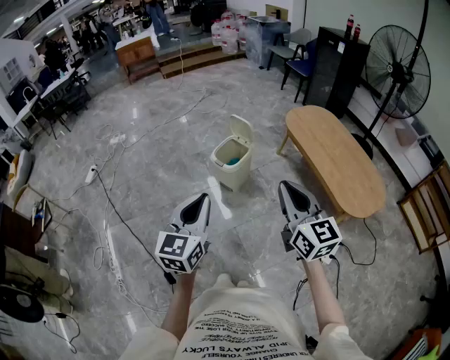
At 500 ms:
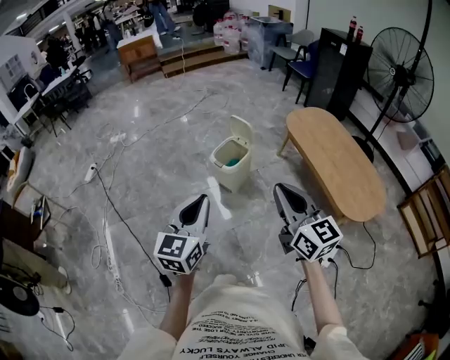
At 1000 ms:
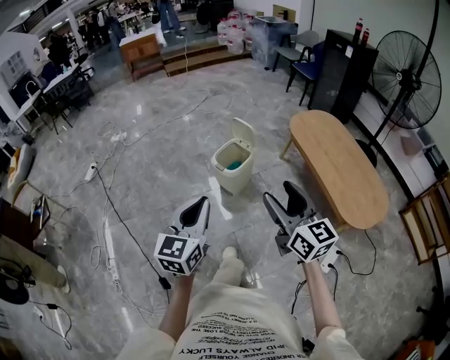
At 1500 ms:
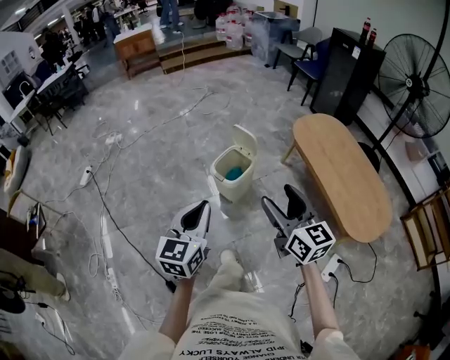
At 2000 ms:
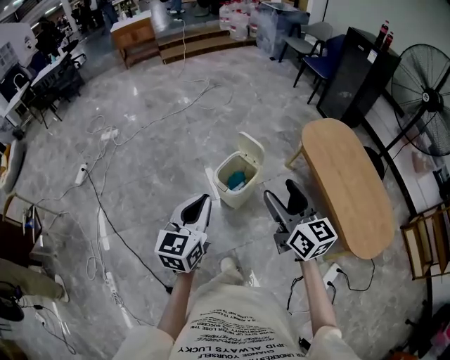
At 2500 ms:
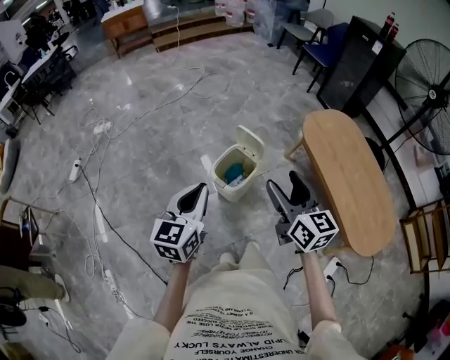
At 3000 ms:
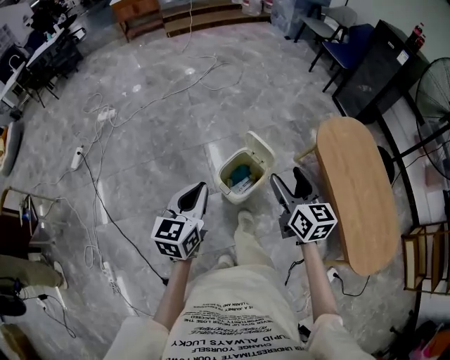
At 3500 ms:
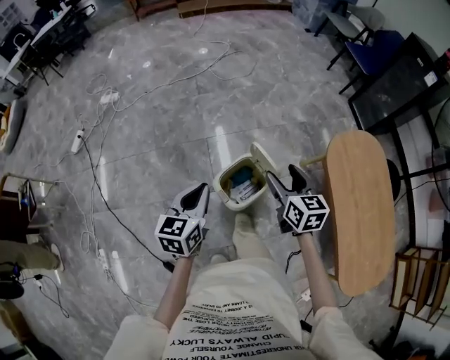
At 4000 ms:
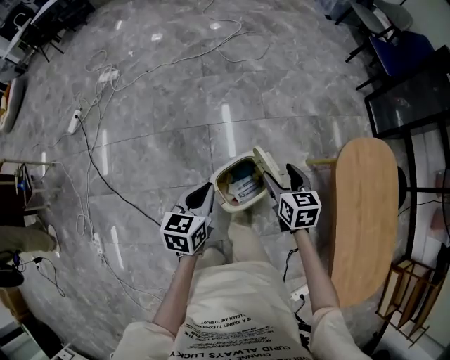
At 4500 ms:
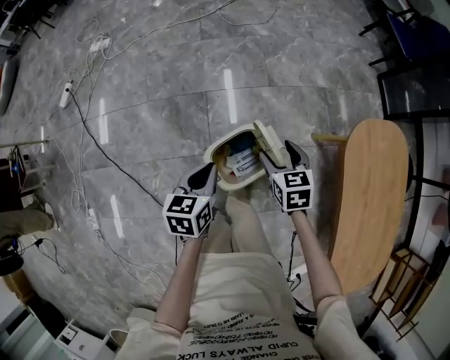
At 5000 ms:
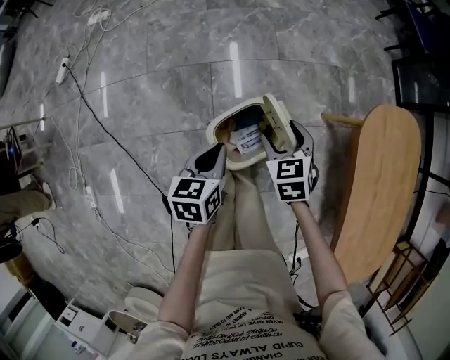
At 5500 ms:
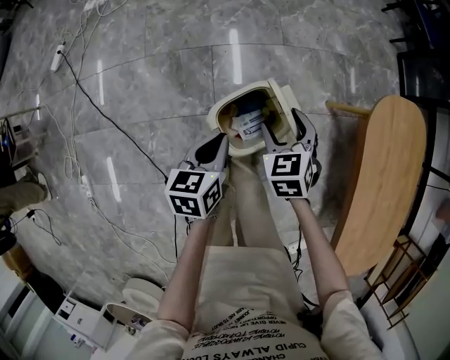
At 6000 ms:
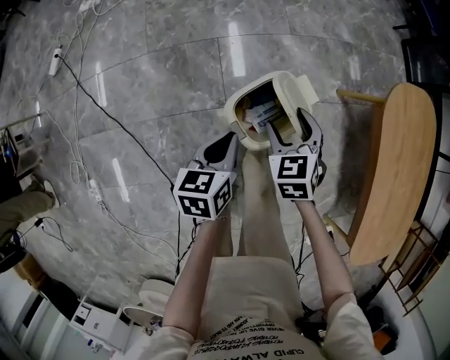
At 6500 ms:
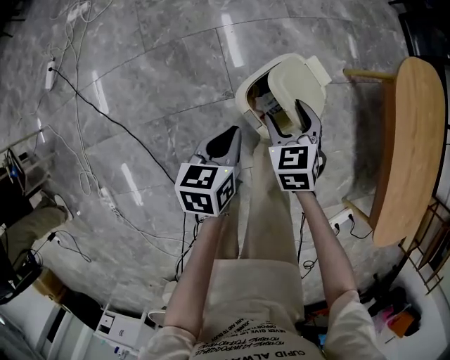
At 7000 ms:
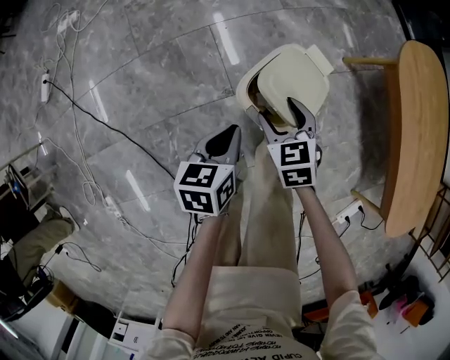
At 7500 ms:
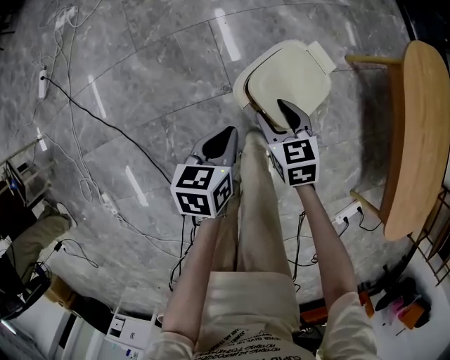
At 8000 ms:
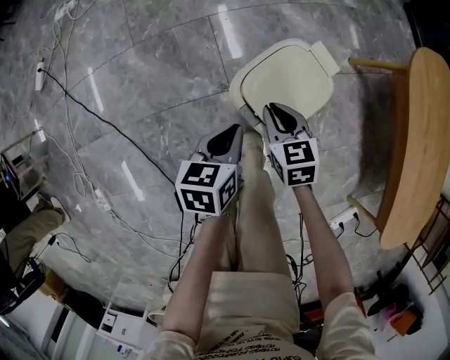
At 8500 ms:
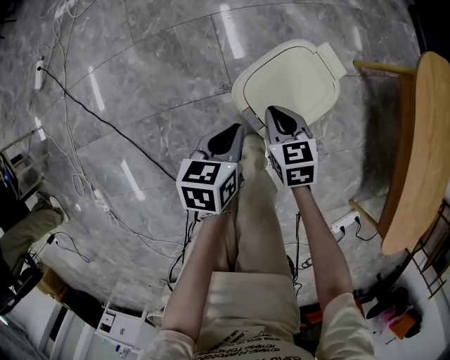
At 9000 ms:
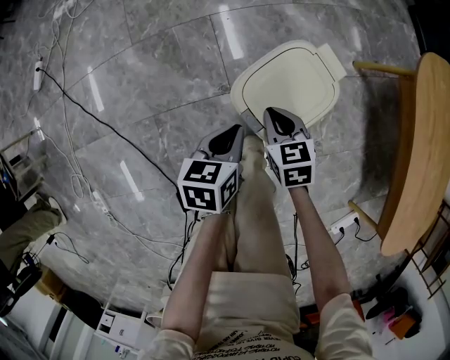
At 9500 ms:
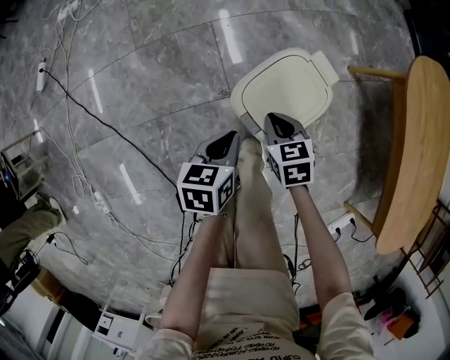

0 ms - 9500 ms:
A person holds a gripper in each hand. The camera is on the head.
0 ms - 2000 ms: The two grippers go roughly 25 cm forward. The right gripper opens.
2000 ms - 4000 ms: Both grippers move forward and downward, approximately 40 cm. The left gripper turns by some 30 degrees. The right gripper angles its fingers downward, by some 40 degrees.
4000 ms - 5500 ms: Both grippers travel together downward, approximately 10 cm. The right gripper swivels roughly 30 degrees.
5500 ms - 7500 ms: The grippers both shift downward, to the left and backward by approximately 15 cm. The right gripper rotates approximately 20 degrees.
7500 ms - 9500 ms: The right gripper travels downward by approximately 5 cm, and closes up.

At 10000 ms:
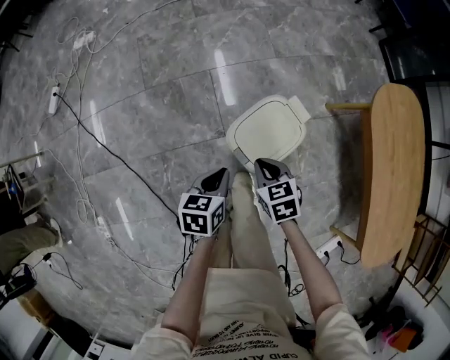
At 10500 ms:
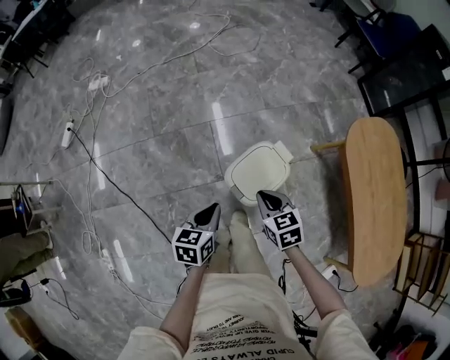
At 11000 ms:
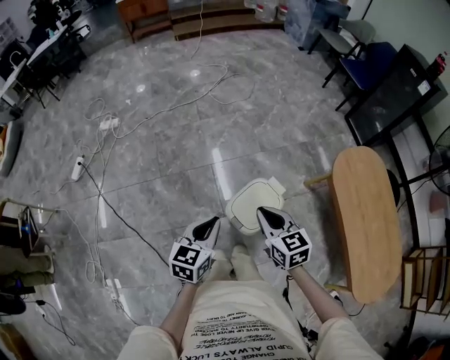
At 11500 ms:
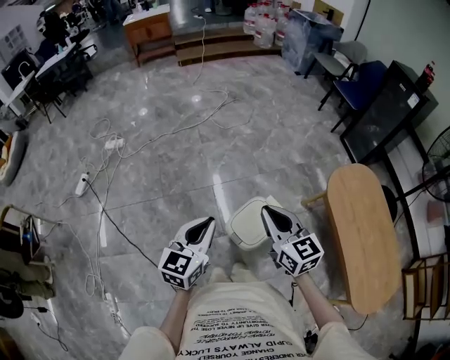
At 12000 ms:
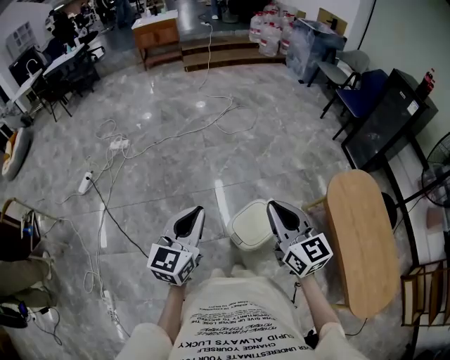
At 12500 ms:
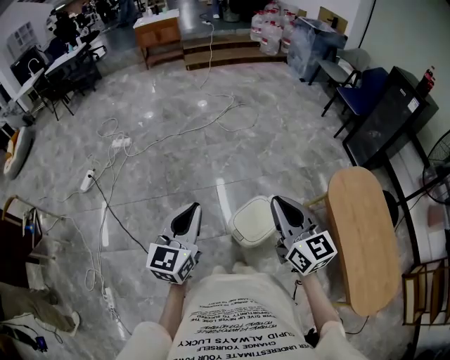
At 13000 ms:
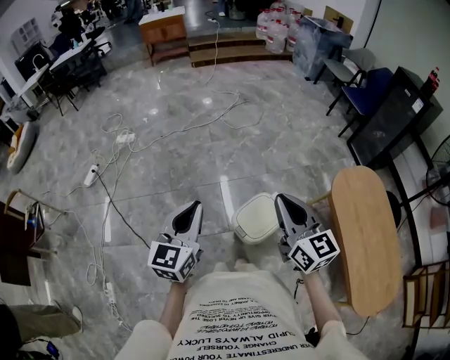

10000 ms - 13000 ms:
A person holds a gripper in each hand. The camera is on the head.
10000 ms - 11500 ms: The two grippers go about 35 cm upward. The left gripper tips its fingers upward by about 30 degrees. Meanwhile the right gripper tilts its fingers approximately 40 degrees upward.
11500 ms - 13000 ms: The left gripper travels upward and to the left by approximately 10 cm, while the right gripper goes some 5 cm upward.

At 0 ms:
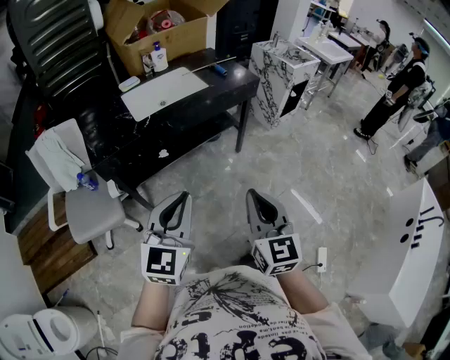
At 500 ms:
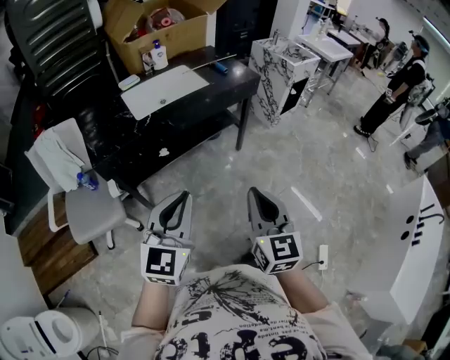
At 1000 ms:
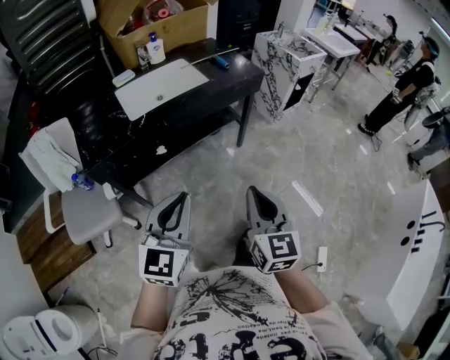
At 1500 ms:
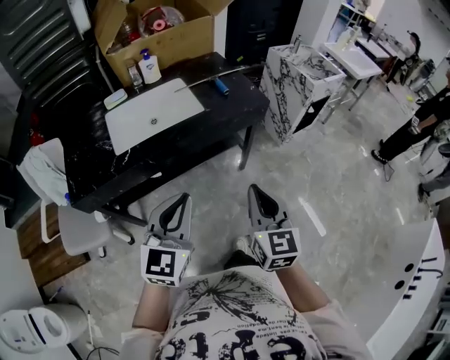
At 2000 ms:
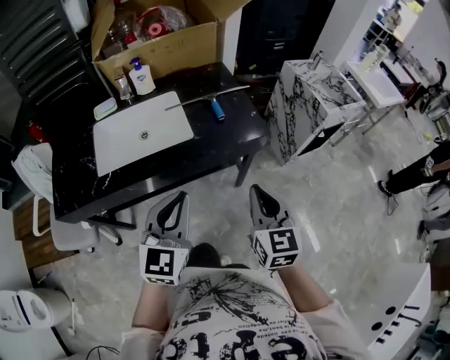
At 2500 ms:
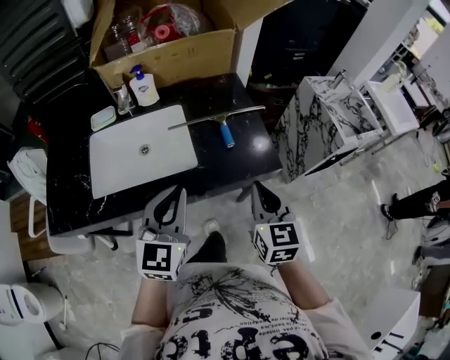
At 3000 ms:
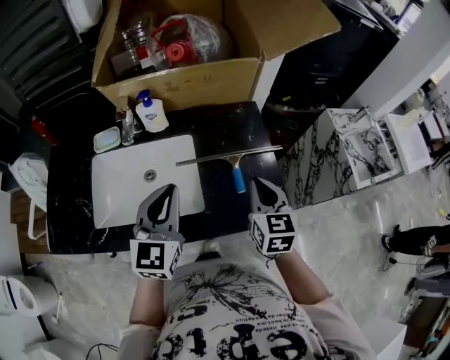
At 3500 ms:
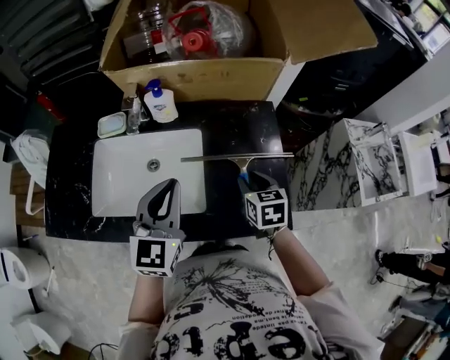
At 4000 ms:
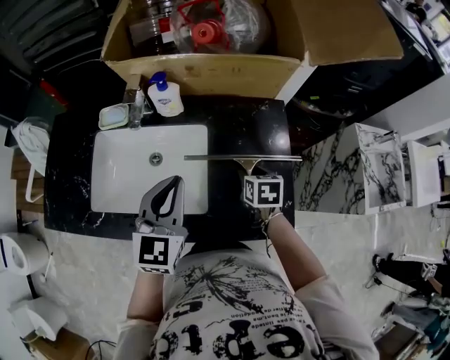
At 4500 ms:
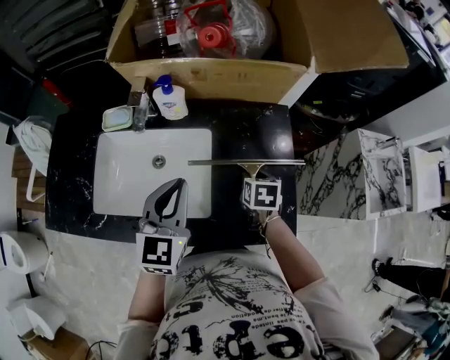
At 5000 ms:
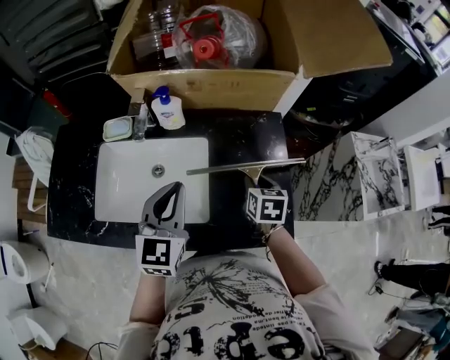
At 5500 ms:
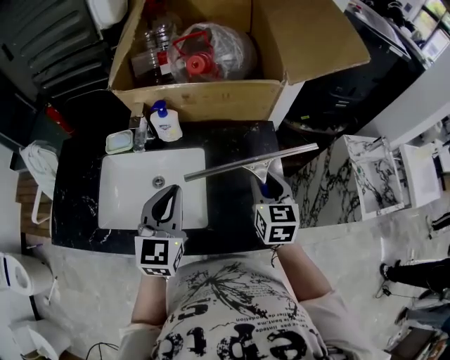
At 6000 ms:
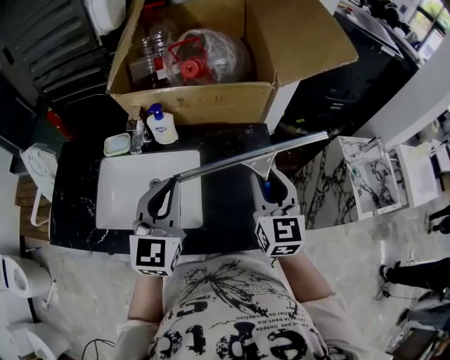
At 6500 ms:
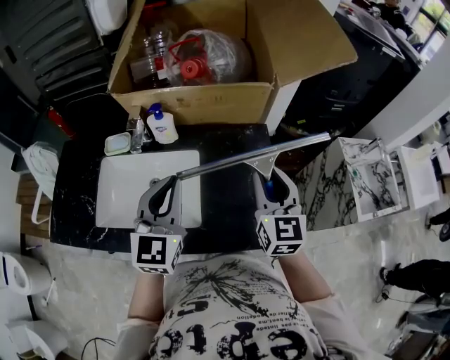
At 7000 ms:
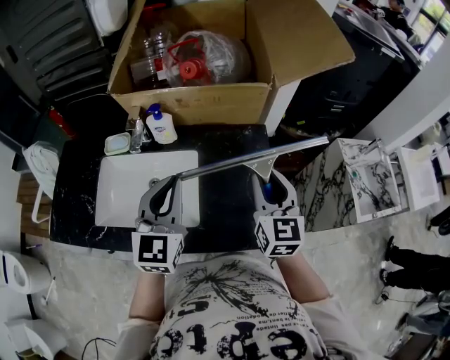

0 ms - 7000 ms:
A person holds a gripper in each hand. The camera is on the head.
0 ms - 2000 ms: The pair of grippers is taken forward, about 50 cm.
2000 ms - 3500 ms: Both grippers move forward, some 35 cm. The left gripper changes its angle by approximately 20 degrees. Meanwhile the right gripper rotates about 30 degrees, and opens.
5000 ms - 7000 ms: The left gripper shifts approximately 5 cm upward; the right gripper is displaced upward by approximately 20 cm, and points its fingers about 40 degrees further upward.

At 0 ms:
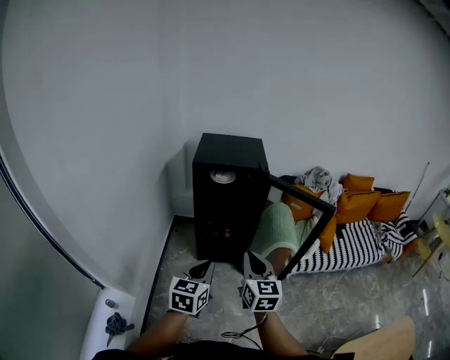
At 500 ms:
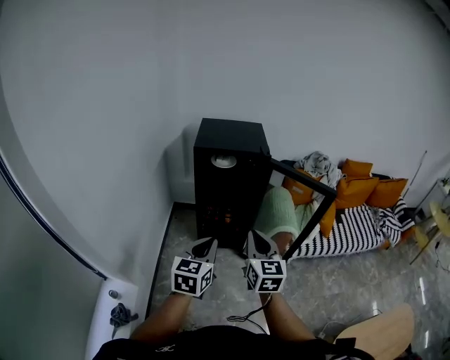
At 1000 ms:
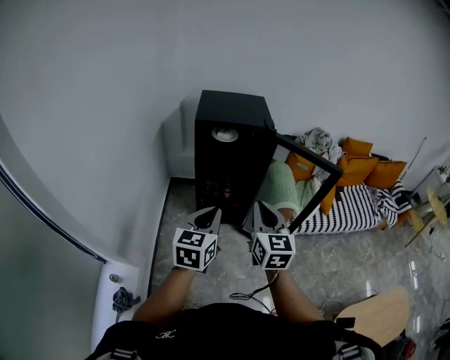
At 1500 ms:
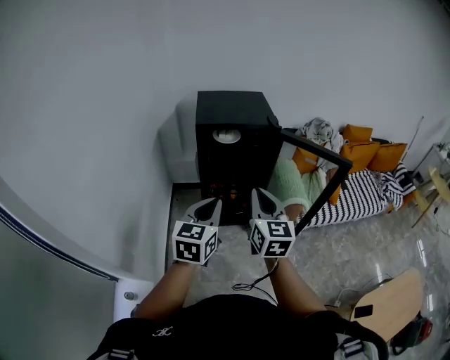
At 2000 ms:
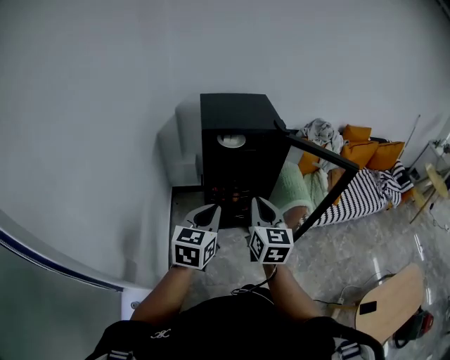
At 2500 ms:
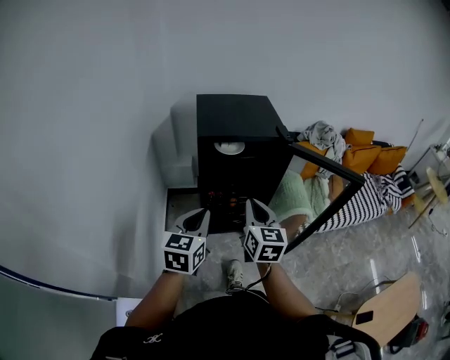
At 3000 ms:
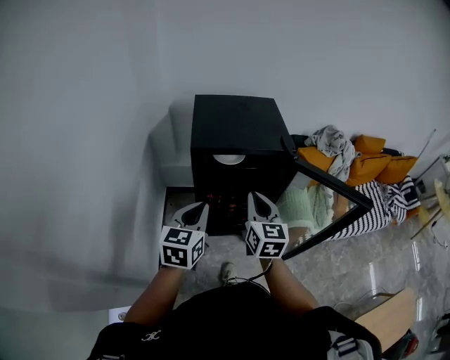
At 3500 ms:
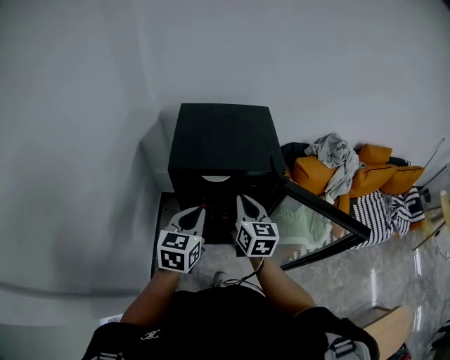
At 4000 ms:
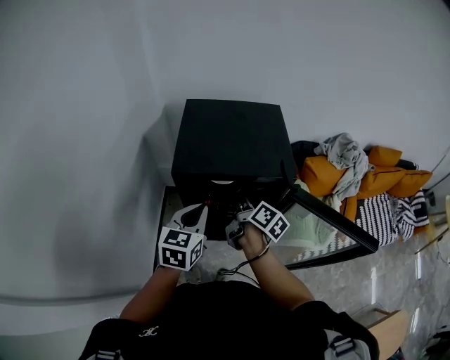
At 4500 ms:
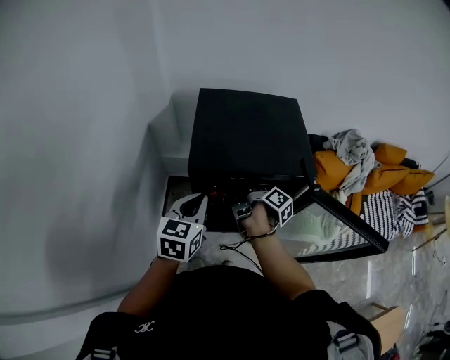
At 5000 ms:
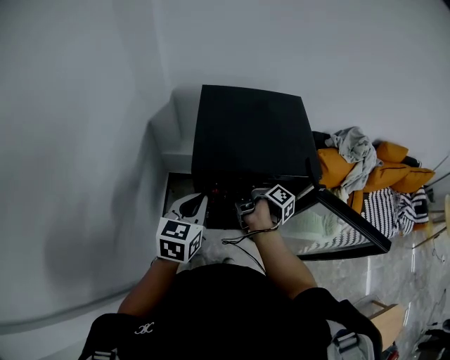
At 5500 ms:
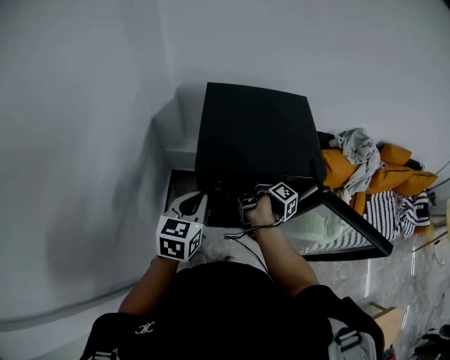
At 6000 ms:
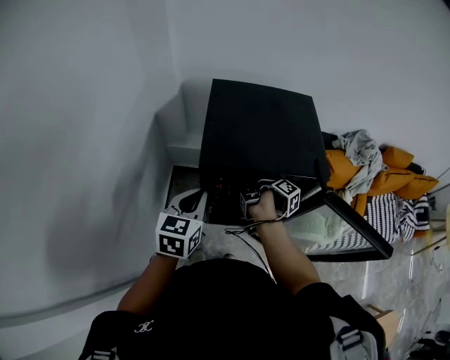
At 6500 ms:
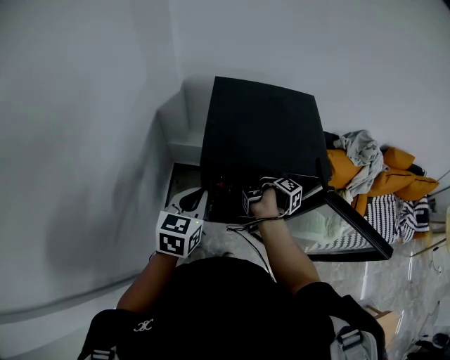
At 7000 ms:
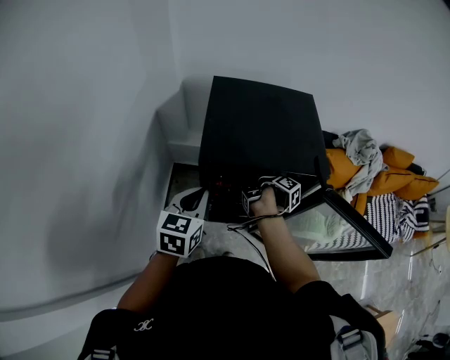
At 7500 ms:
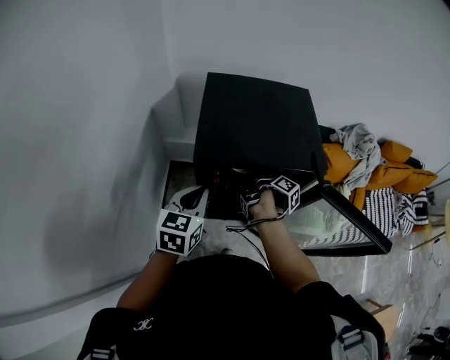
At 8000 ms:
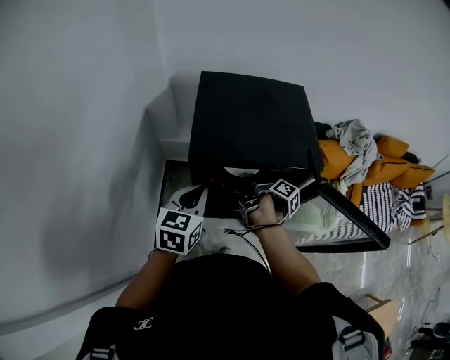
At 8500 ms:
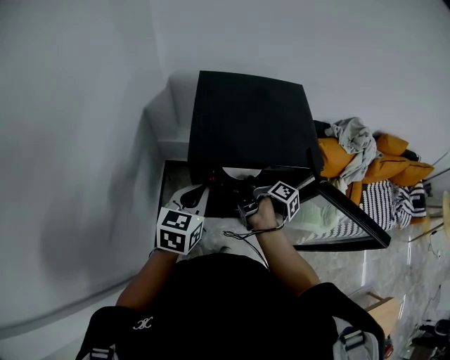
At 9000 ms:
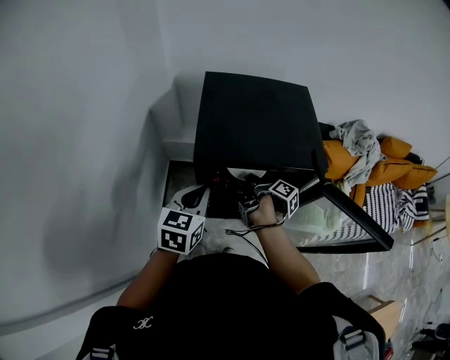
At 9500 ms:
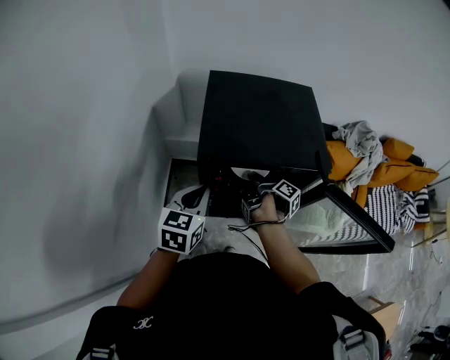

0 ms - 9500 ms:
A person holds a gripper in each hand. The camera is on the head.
0 ms - 2000 ms: The left gripper shifts by approximately 20 cm.
2000 ms - 4000 ms: The left gripper ends up about 30 cm from where it was.
4000 ms - 5500 ms: The left gripper changes place by some 10 cm.
